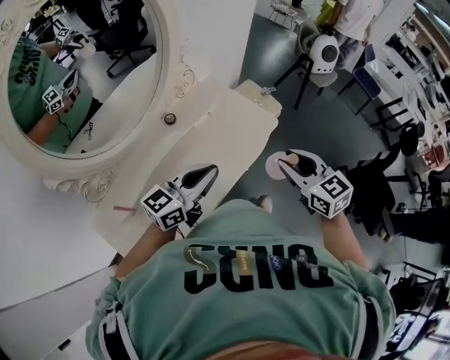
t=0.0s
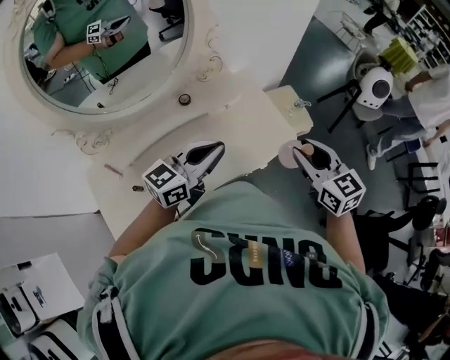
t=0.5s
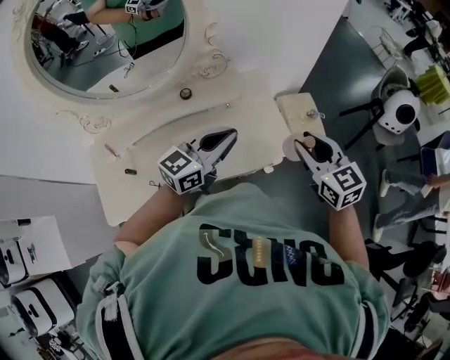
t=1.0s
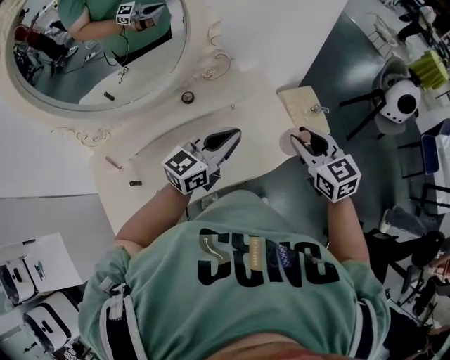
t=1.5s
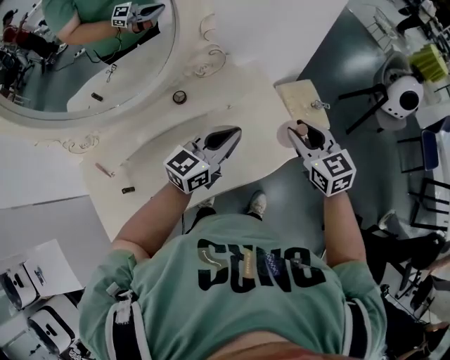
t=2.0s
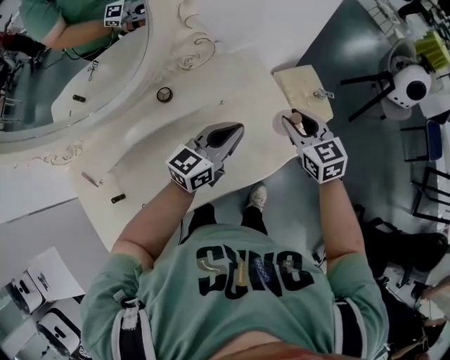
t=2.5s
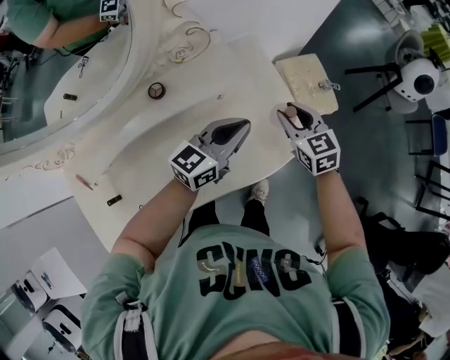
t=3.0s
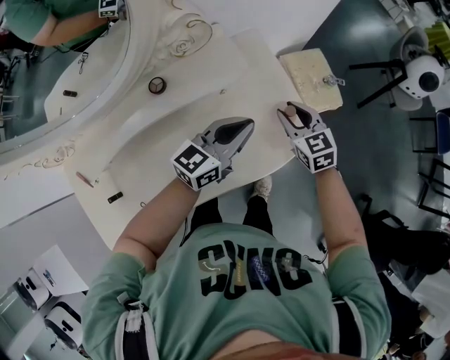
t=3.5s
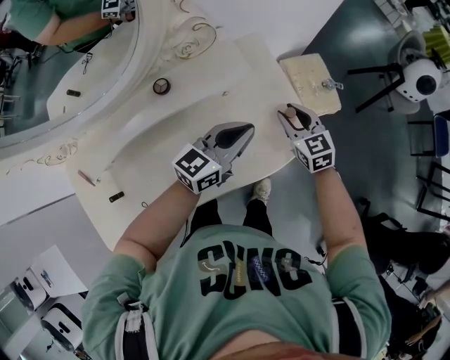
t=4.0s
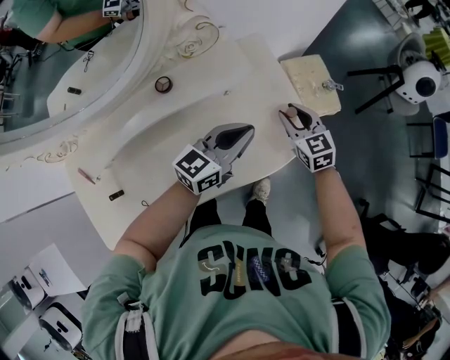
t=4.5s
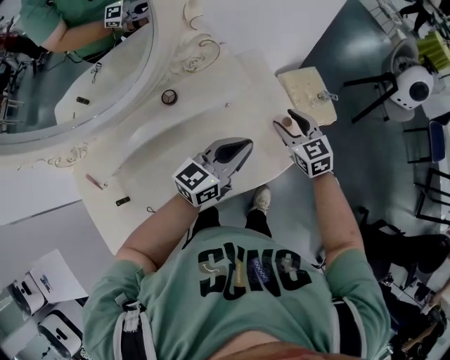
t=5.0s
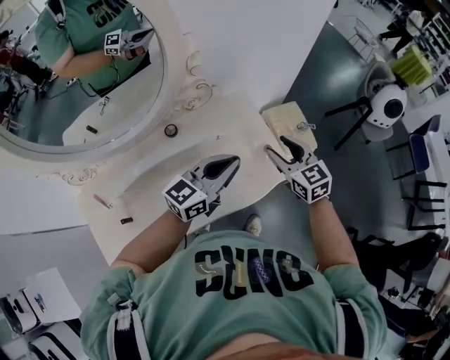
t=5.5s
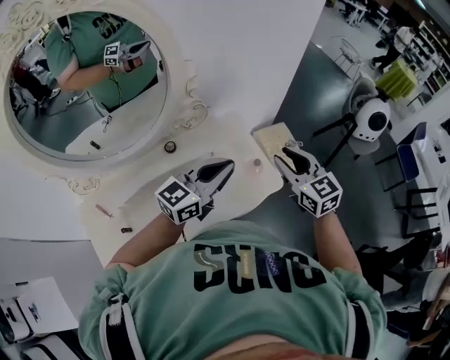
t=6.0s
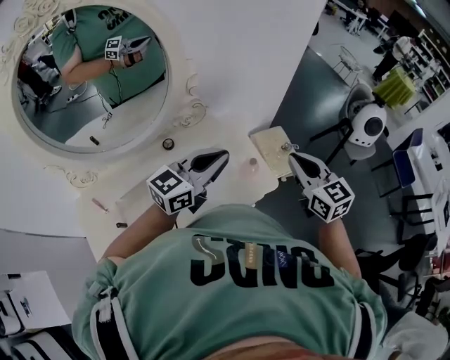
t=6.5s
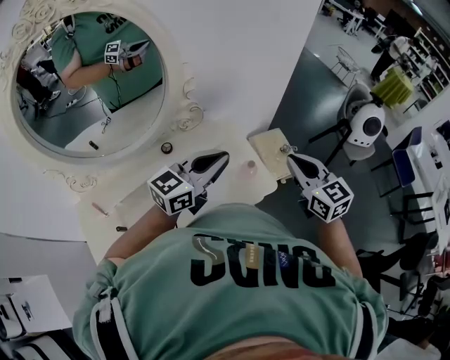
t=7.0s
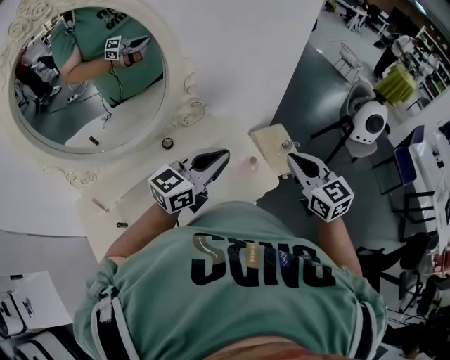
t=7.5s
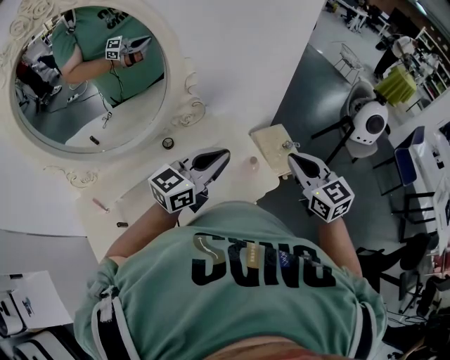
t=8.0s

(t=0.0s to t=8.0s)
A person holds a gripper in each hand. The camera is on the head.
t=0.0s - t=2.0s: The left gripper changes place by roughly 25 cm, and turns by some 30 degrees. The right gripper shifts by approximately 30 cm.
t=2.0s - t=4.0s: The right gripper shifts approximately 20 cm downward; the left gripper is displaced downward by roughly 10 cm.
t=4.0s - t=6.0s: The two grippers go approximately 25 cm upward. The right gripper opens and closes again.
t=6.0s - t=8.0s: The right gripper ends up some 5 cm from where it was, and closes up.

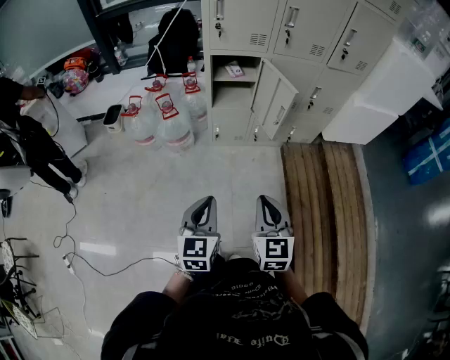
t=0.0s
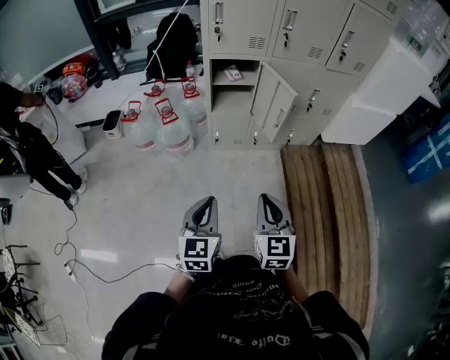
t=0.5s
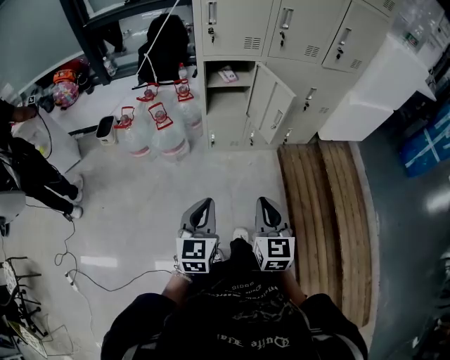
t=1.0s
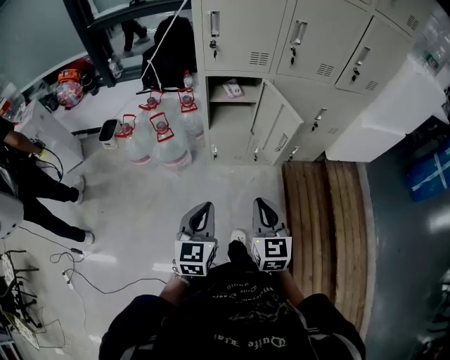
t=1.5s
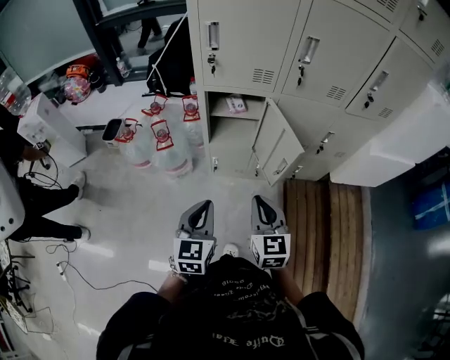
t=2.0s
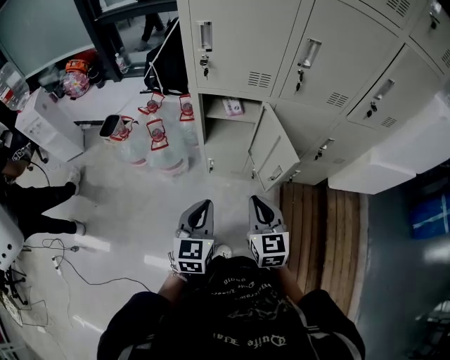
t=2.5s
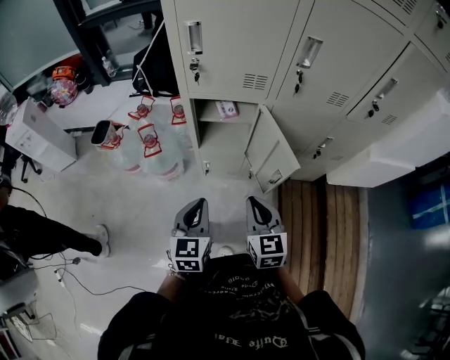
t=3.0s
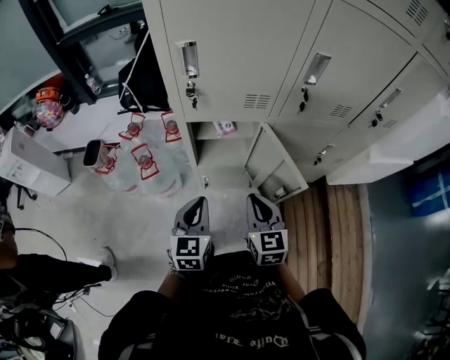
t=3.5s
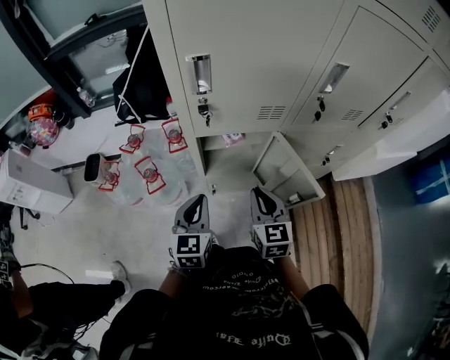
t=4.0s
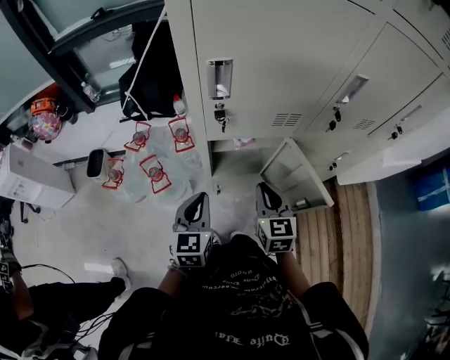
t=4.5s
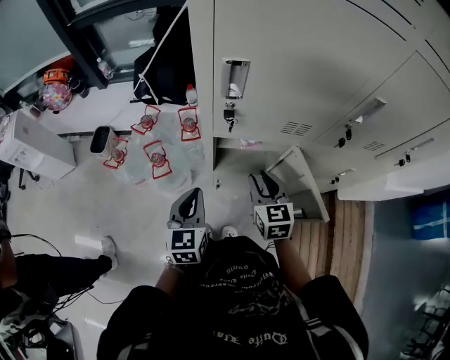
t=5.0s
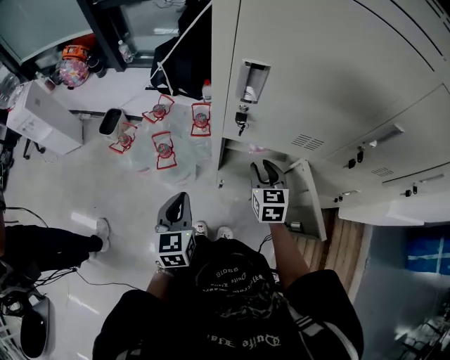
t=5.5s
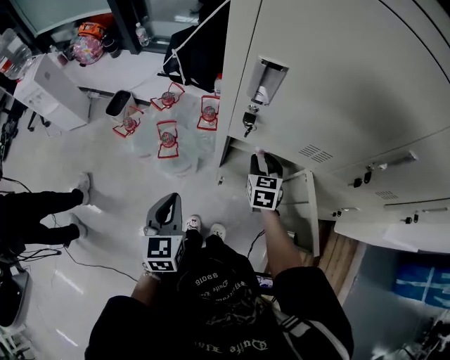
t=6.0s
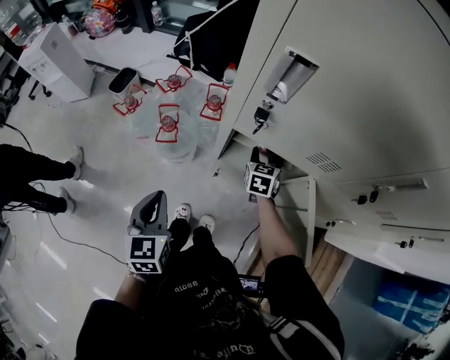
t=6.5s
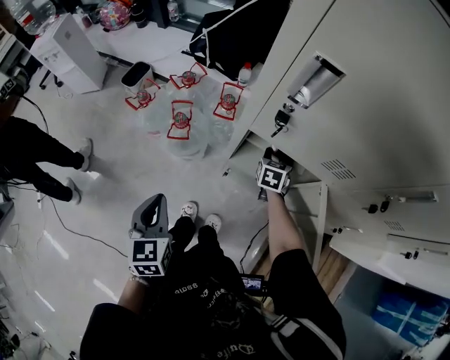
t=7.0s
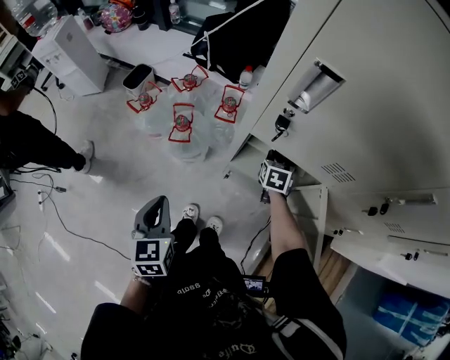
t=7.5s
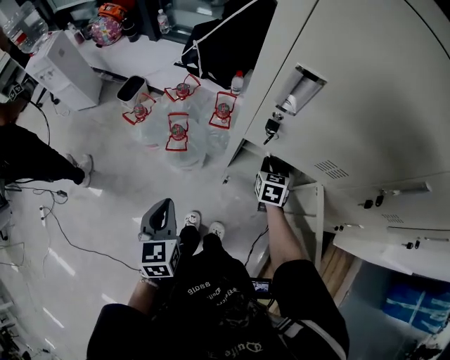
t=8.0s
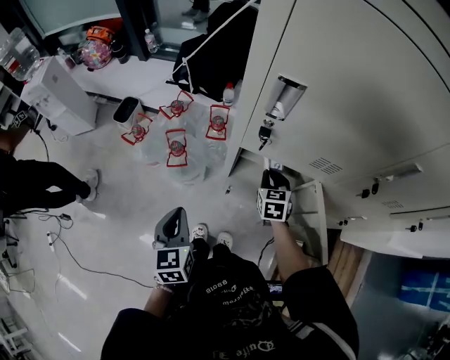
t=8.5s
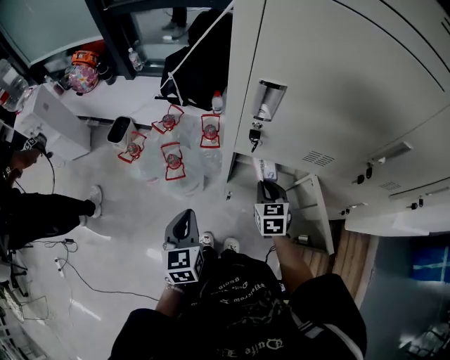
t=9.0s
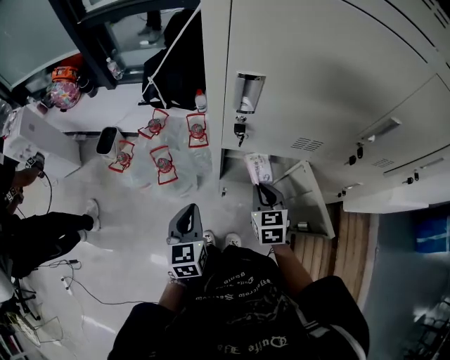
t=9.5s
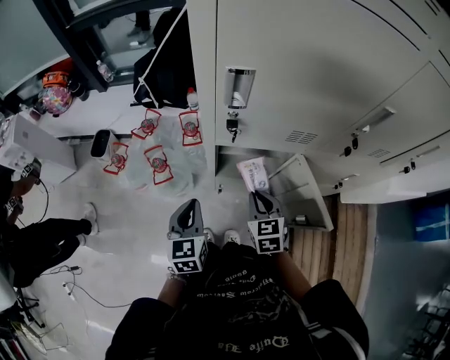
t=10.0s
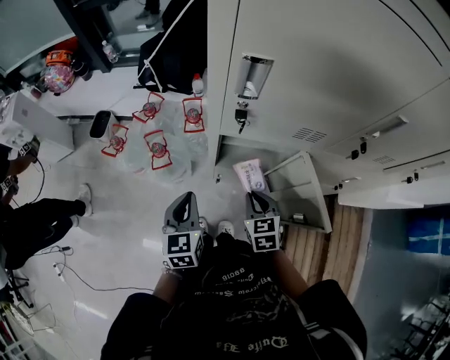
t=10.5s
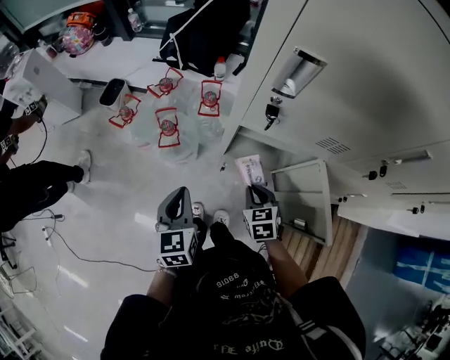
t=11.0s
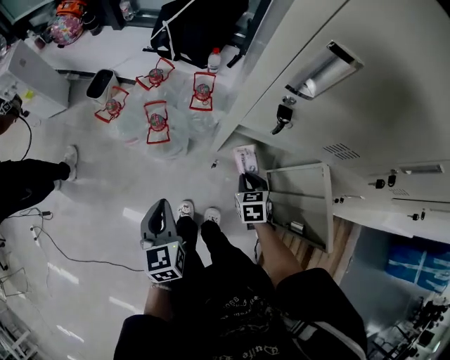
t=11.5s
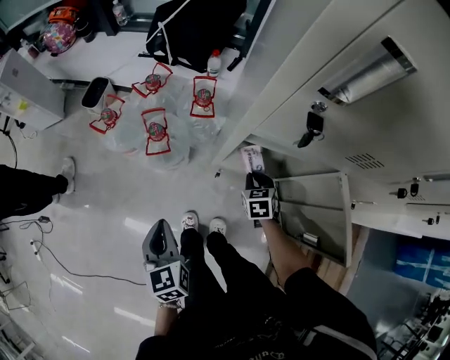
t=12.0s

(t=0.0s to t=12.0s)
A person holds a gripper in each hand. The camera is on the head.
t=0.0s - t=2.0s: The two grippers go roughly 25 cm forward.
t=2.0s - t=4.0s: Both grippers travel together forward, approximately 25 cm.
t=4.0s - t=6.0s: The left gripper shifts approximately 5 cm to the left, and turns by roughly 30 degrees. Meanwhile the right gripper is displaced forward and downward by some 20 cm, and opens its fingers.
t=6.0s - t=8.0s: The right gripper travels downward by about 5 cm, and closes.
t=8.0s - t=10.0s: The right gripper is displaced backward and upward by about 20 cm. Meanwhile the left gripper moves to the right and forward, some 10 cm, and rotates some 20 degrees.
t=10.0s - t=12.0s: The right gripper is displaced downward and forward by some 25 cm. Meanwhile the left gripper heads downward, to the left and backward, covering roughly 15 cm, and changes its angle by approximately 30 degrees.

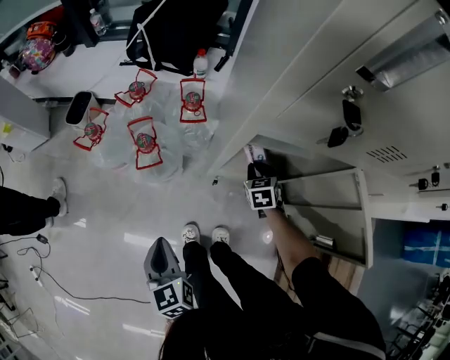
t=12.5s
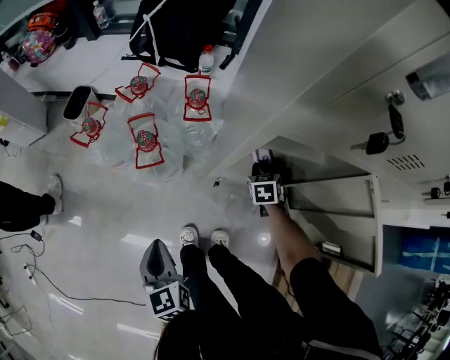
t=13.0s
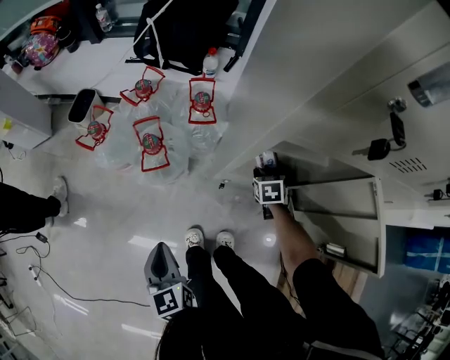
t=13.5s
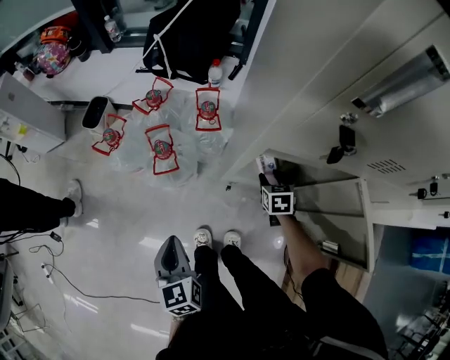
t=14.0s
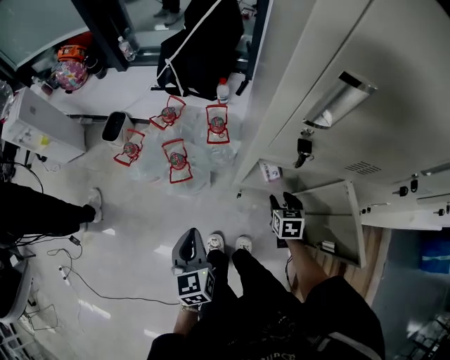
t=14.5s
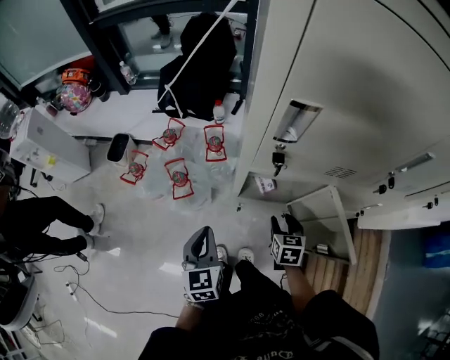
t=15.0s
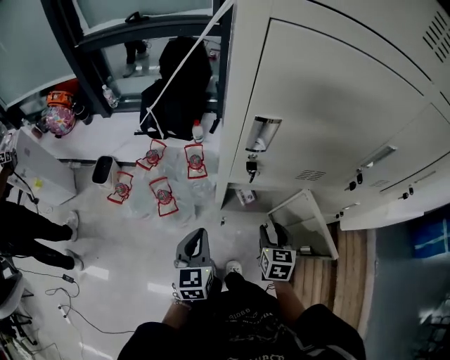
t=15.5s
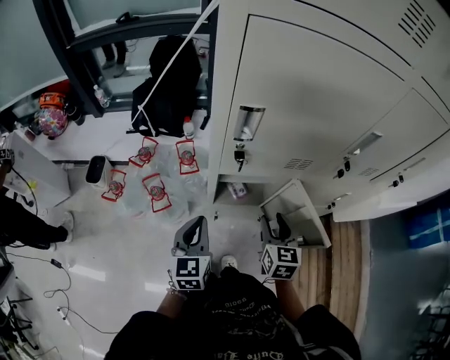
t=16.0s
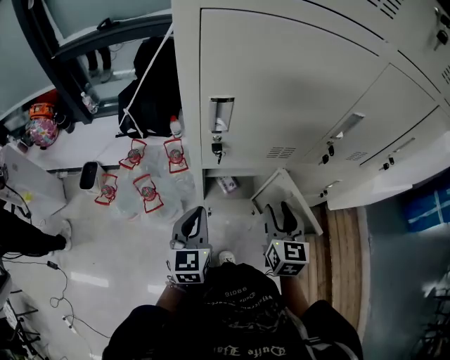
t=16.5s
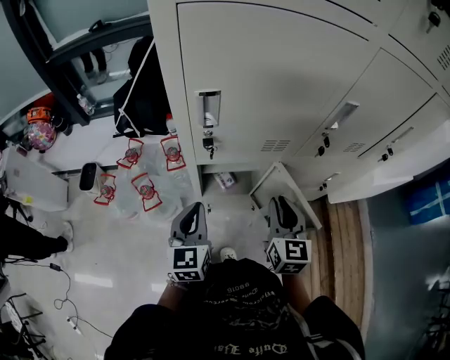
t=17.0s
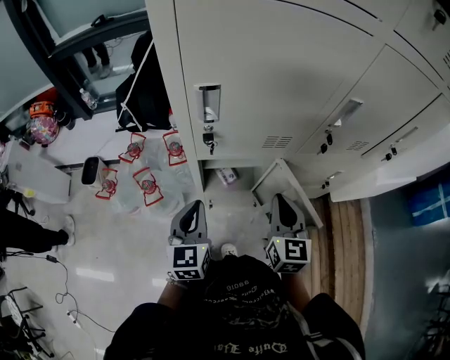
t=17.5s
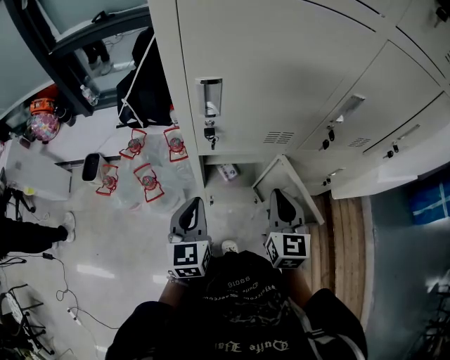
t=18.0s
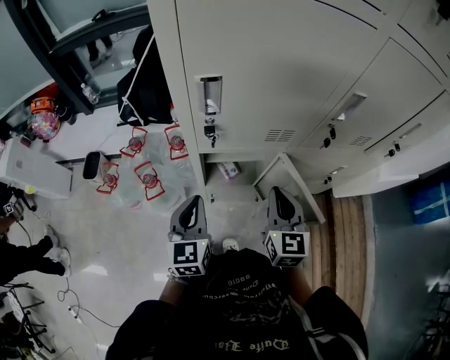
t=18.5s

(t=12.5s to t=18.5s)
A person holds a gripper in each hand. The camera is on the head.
t=12.5s - t=14.5s: The right gripper is displaced upward and backward by approximately 10 cm, and opens up, while the left gripper shifts some 10 cm upward.
t=14.5s - t=16.5s: The right gripper goes some 30 cm upward, and angles its fingers upward, by about 30 degrees. Meanwhile the left gripper moves upward, to the right and forward, approximately 20 cm, and rotates roughly 30 degrees.
t=16.5s - t=18.5s: The right gripper closes up.

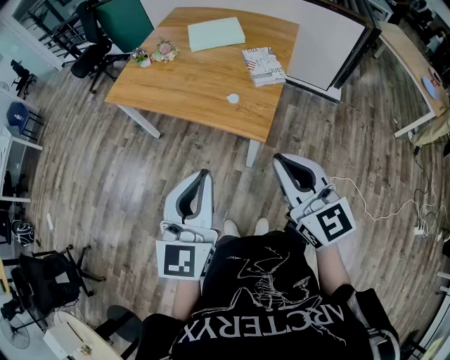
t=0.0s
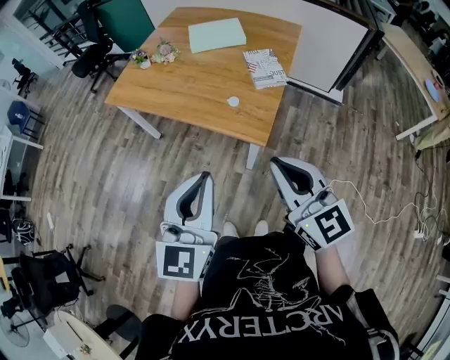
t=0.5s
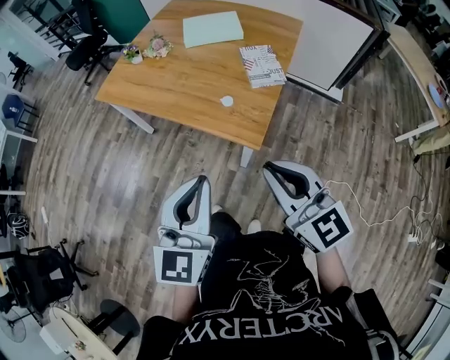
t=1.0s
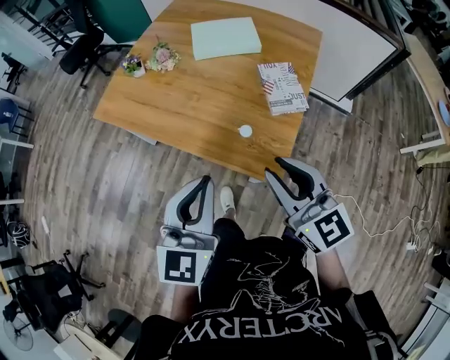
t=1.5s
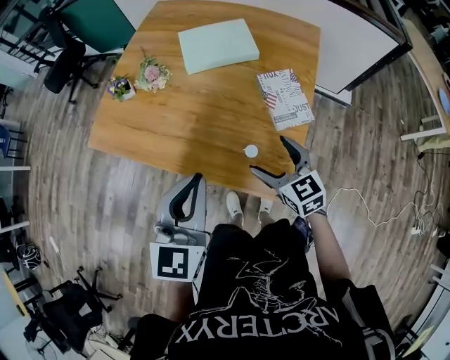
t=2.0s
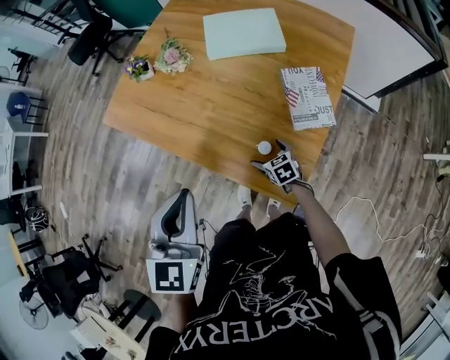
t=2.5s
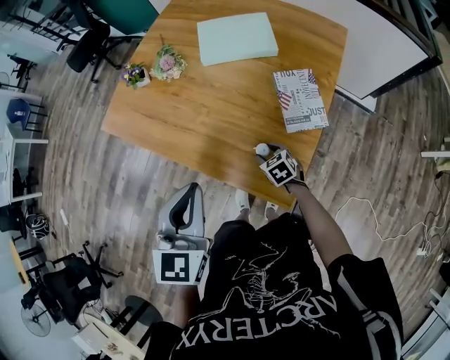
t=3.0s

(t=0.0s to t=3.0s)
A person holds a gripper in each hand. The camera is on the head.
t=0.0s - t=1.5s: Both grippers move forward, some 25 cm.
t=1.5s - t=3.0s: The right gripper heads downward and forward, covering about 40 cm, tilts its fingers some 50 degrees downward, and opens and closes again, while the left gripper is displaced forward by approximately 10 cm.
